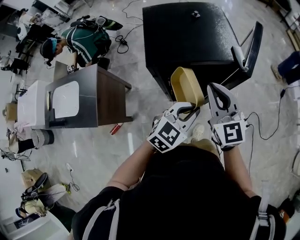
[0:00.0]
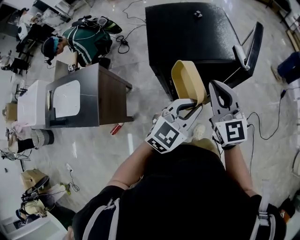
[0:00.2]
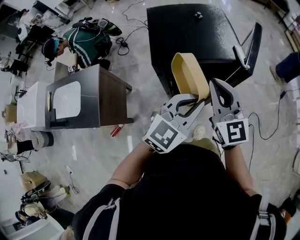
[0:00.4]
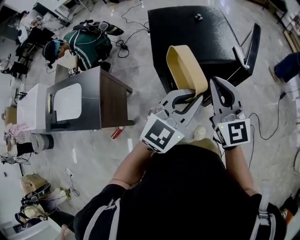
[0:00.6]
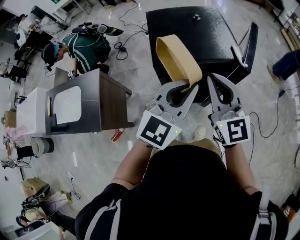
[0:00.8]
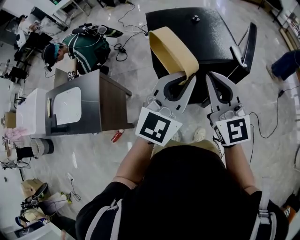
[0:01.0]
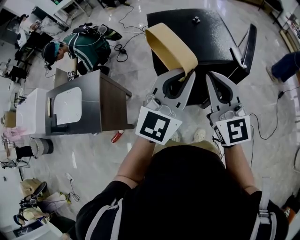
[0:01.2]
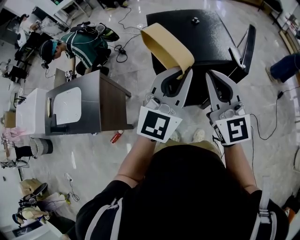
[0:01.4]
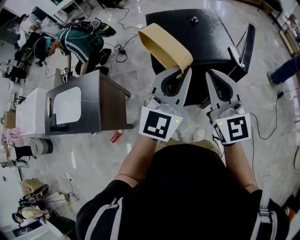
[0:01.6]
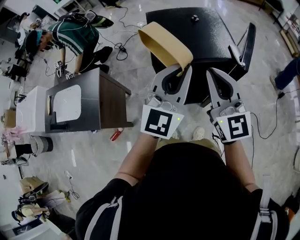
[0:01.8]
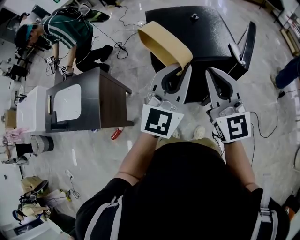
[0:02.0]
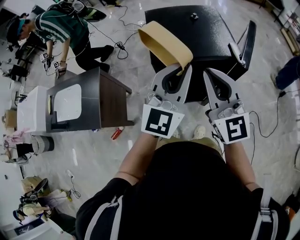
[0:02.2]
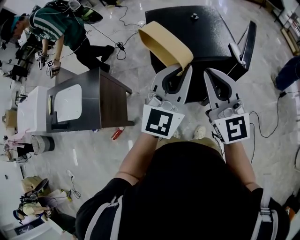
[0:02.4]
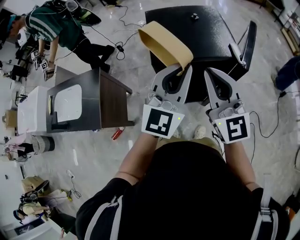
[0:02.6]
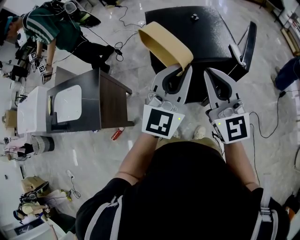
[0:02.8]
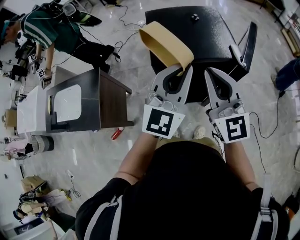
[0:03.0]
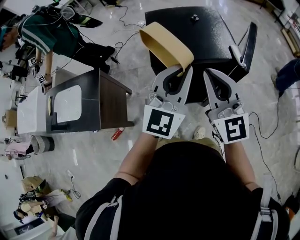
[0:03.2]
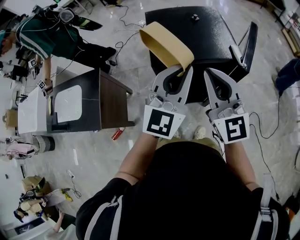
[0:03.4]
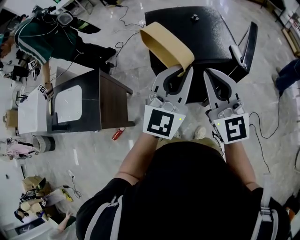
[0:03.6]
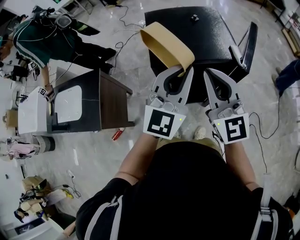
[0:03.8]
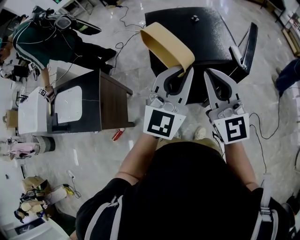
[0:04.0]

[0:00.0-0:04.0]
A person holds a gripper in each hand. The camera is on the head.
0:00.0 to 0:01.4: The left gripper shifts roughly 20 cm upward and to the left, and points its fingers some 40 degrees further upward, while the right gripper shifts approximately 10 cm upward.
0:01.4 to 0:04.0: The grippers move only a little.

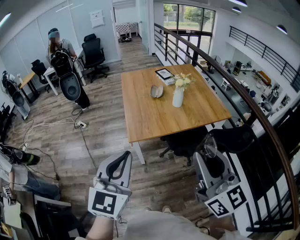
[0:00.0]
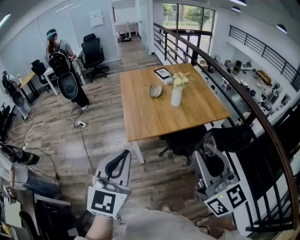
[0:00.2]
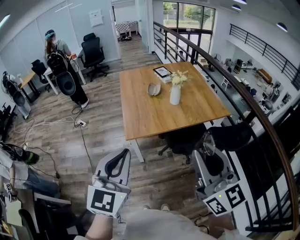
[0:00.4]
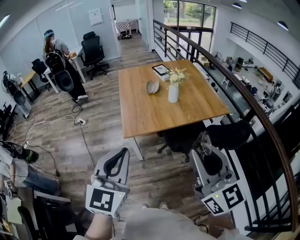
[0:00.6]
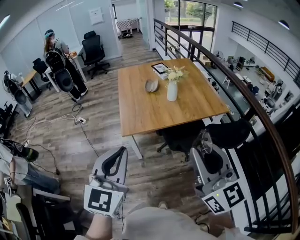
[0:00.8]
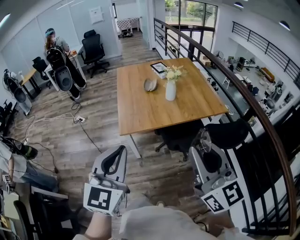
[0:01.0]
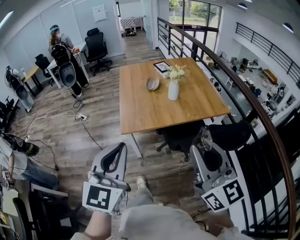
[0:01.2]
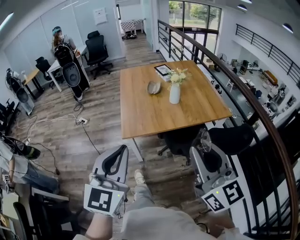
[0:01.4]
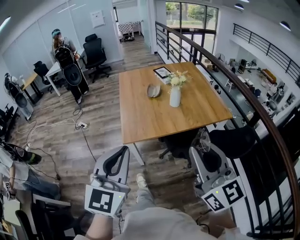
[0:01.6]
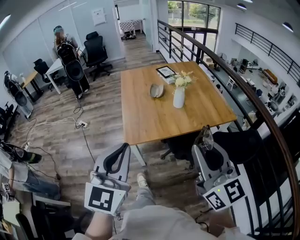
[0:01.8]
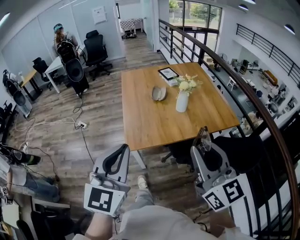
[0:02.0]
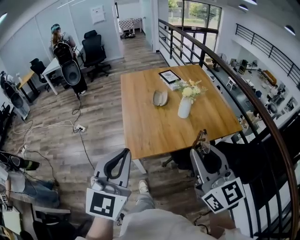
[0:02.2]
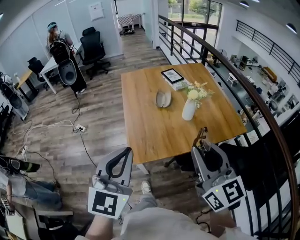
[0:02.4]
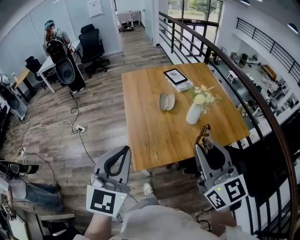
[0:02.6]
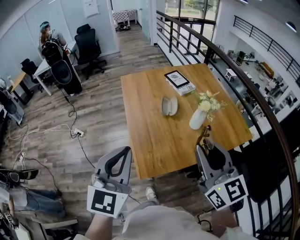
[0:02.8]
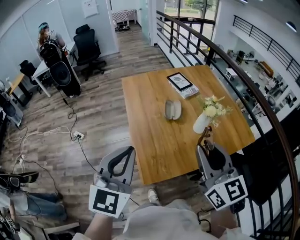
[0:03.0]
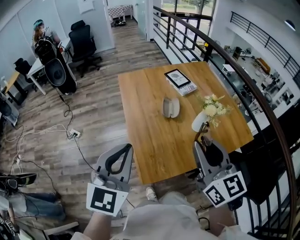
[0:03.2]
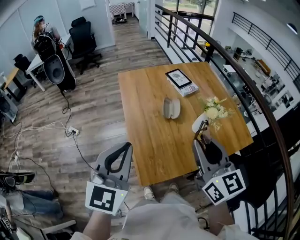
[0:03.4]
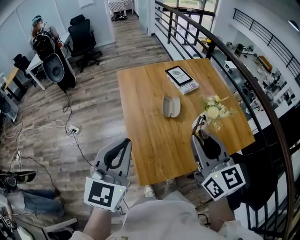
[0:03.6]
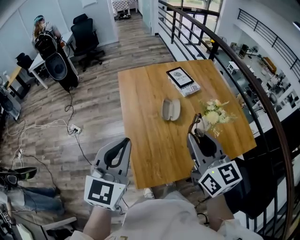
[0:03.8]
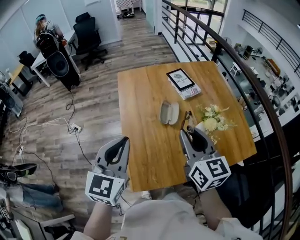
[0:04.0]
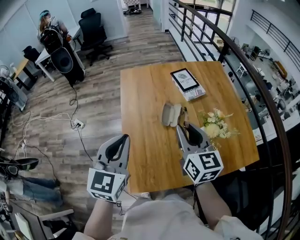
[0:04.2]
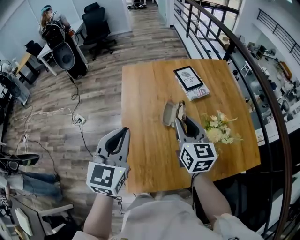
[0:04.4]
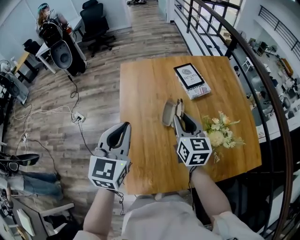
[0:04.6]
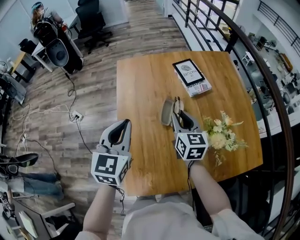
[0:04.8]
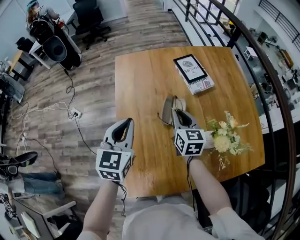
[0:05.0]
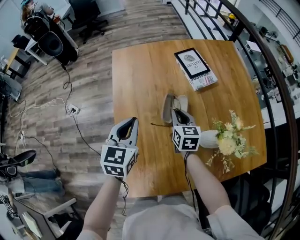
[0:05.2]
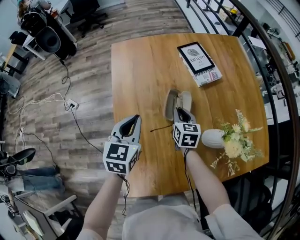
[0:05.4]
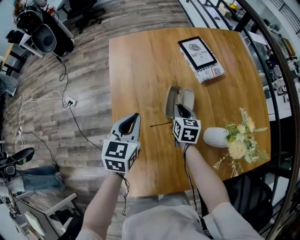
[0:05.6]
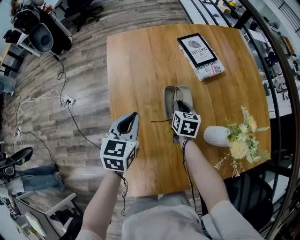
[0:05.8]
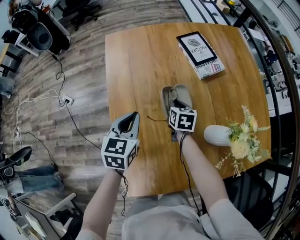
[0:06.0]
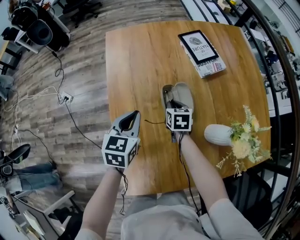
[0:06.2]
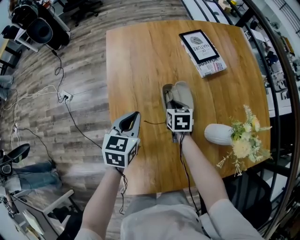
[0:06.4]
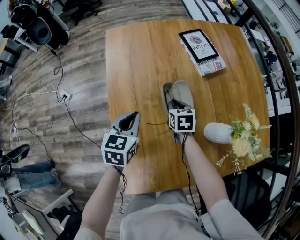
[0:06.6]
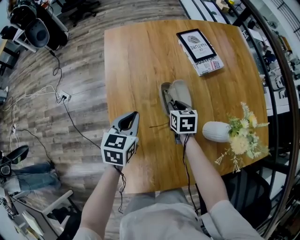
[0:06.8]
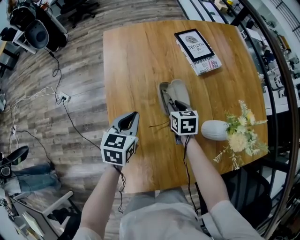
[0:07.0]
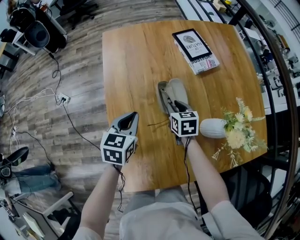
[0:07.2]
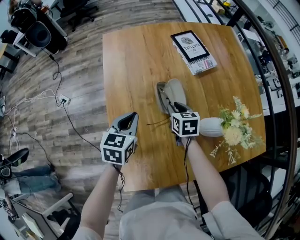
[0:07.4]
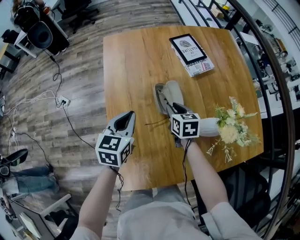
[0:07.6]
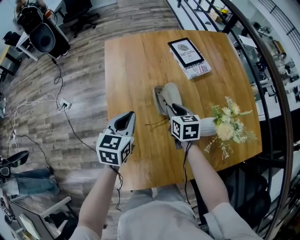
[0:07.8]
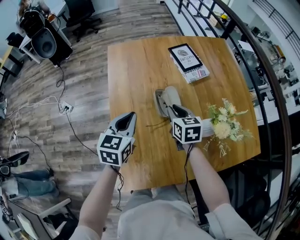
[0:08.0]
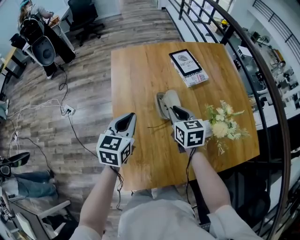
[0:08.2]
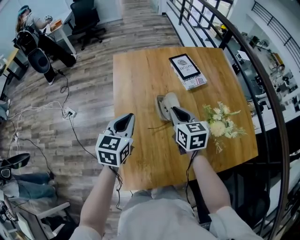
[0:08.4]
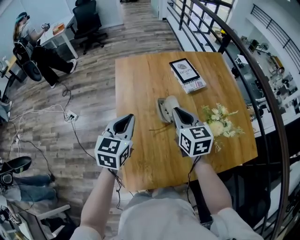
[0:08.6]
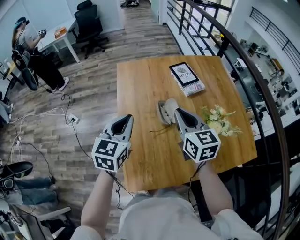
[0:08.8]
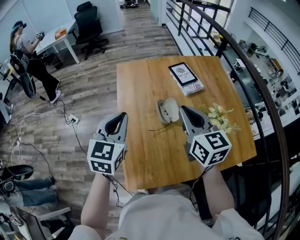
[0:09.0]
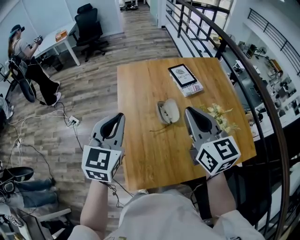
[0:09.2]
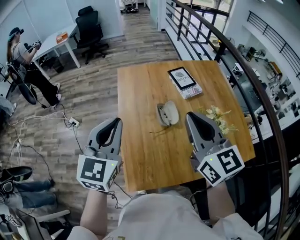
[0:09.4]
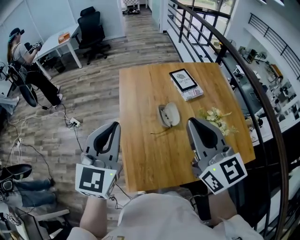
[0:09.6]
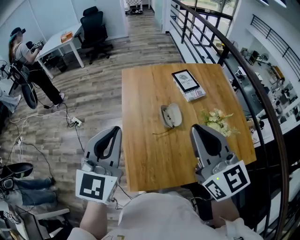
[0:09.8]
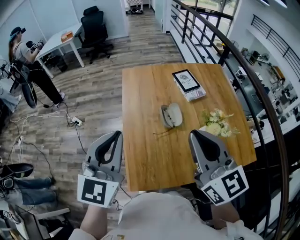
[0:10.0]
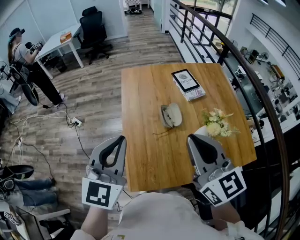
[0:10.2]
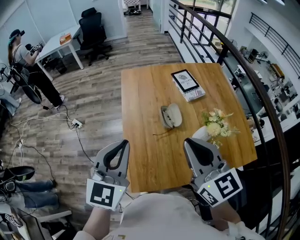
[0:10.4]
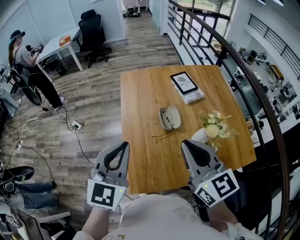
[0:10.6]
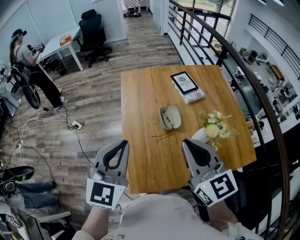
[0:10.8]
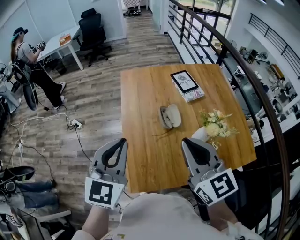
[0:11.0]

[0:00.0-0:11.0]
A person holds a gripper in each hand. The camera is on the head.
0:00.0 to 0:01.6: Both grippers travel together to the right, roughly 5 cm.
0:01.6 to 0:03.2: The two grippers travel together, forward, some 40 cm.
0:03.2 to 0:04.8: Both grippers move forward and downward, approximately 35 cm.
0:04.8 to 0:06.2: The two grippers go approximately 25 cm downward. The left gripper rotates roughly 20 degrees. Meanwhile the right gripper angles its fingers downward, by roughly 30 degrees.
0:06.2 to 0:07.8: The right gripper shifts roughly 10 cm upward and backward; the left gripper heads upward, covering roughly 5 cm.
0:07.8 to 0:09.4: Both grippers travel together upward and backward, about 35 cm. The left gripper rotates approximately 30 degrees, while the right gripper points its fingers approximately 40 degrees further upward.
0:09.4 to 0:11.0: Both grippers move backward, about 5 cm.

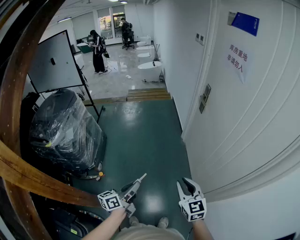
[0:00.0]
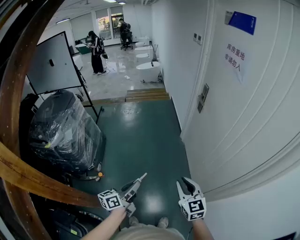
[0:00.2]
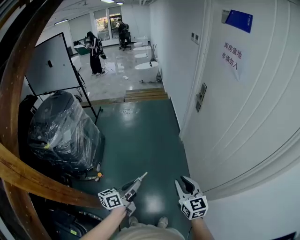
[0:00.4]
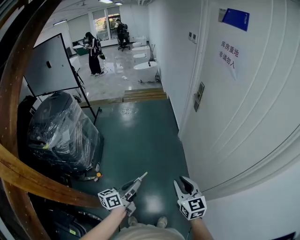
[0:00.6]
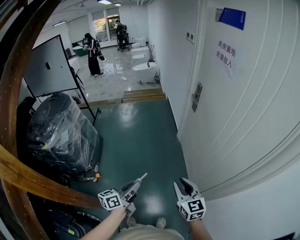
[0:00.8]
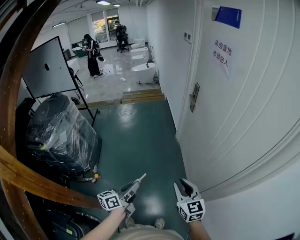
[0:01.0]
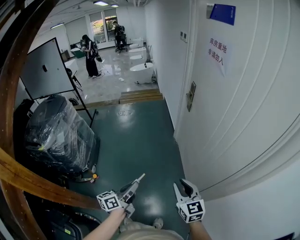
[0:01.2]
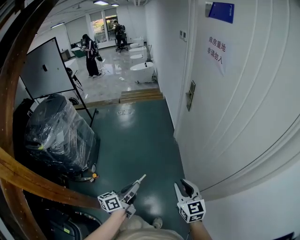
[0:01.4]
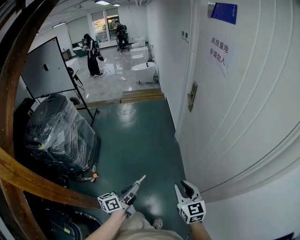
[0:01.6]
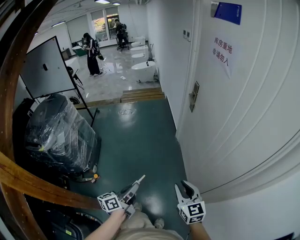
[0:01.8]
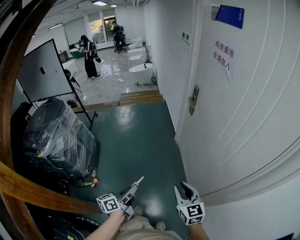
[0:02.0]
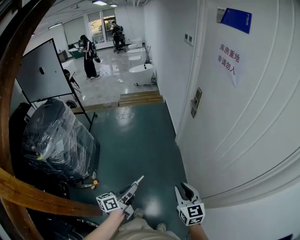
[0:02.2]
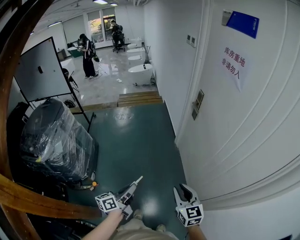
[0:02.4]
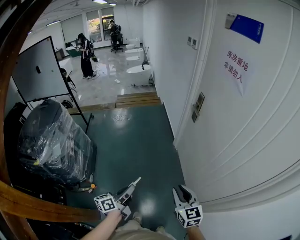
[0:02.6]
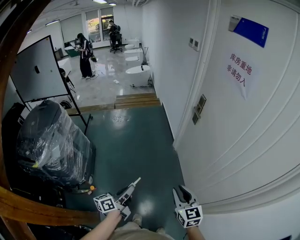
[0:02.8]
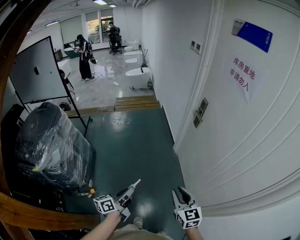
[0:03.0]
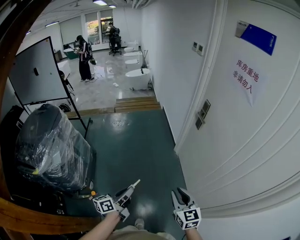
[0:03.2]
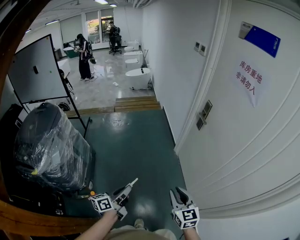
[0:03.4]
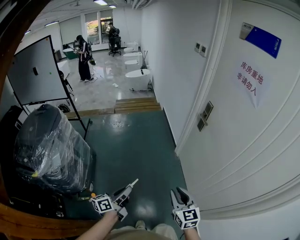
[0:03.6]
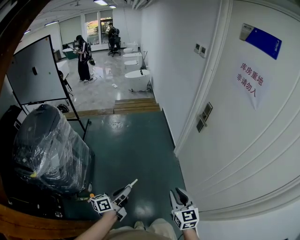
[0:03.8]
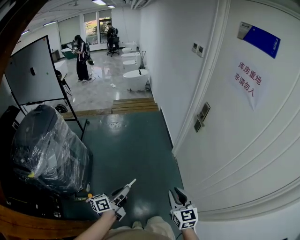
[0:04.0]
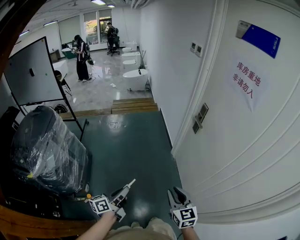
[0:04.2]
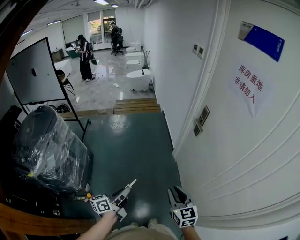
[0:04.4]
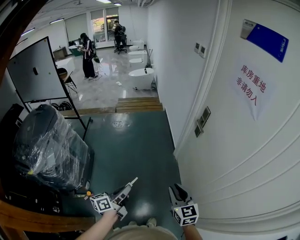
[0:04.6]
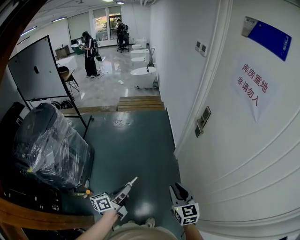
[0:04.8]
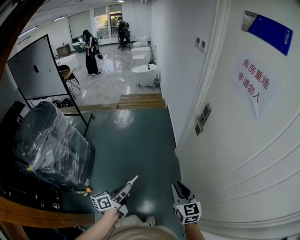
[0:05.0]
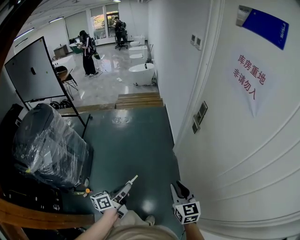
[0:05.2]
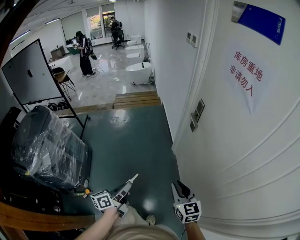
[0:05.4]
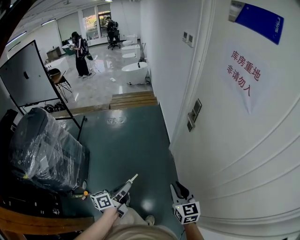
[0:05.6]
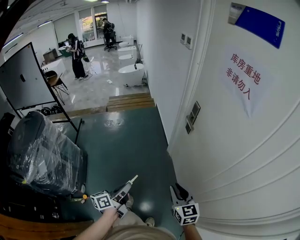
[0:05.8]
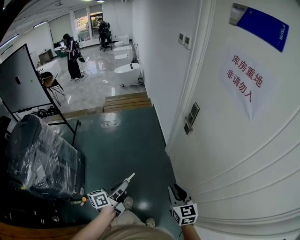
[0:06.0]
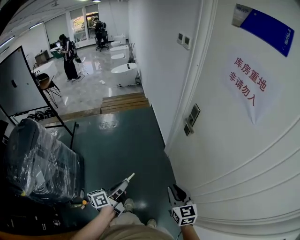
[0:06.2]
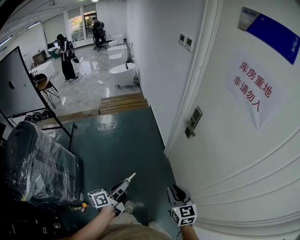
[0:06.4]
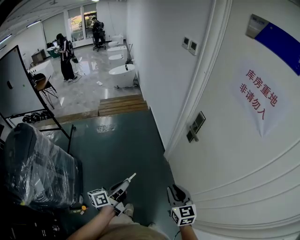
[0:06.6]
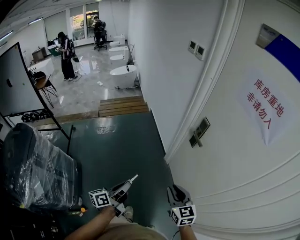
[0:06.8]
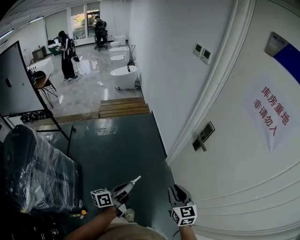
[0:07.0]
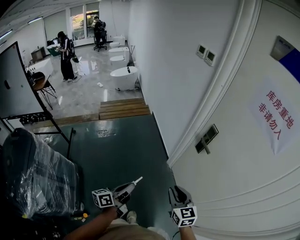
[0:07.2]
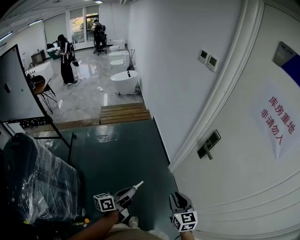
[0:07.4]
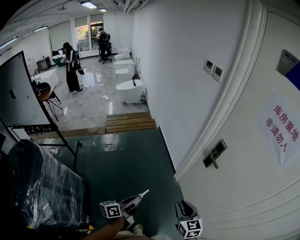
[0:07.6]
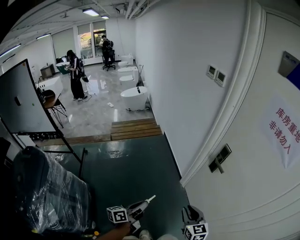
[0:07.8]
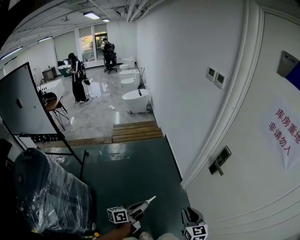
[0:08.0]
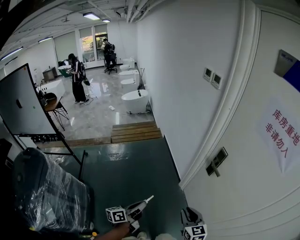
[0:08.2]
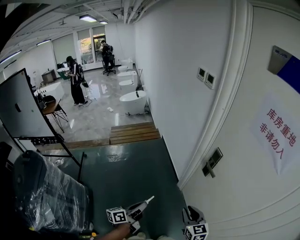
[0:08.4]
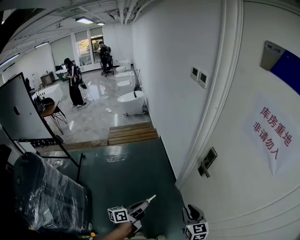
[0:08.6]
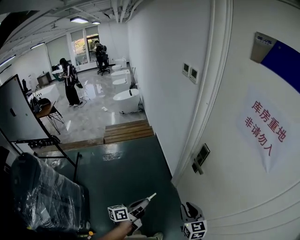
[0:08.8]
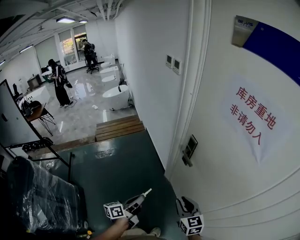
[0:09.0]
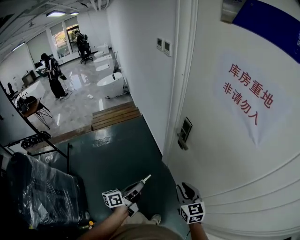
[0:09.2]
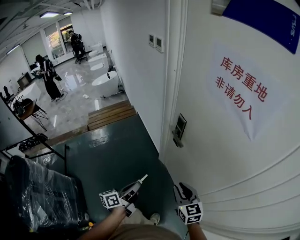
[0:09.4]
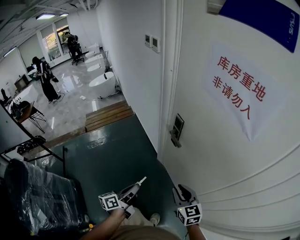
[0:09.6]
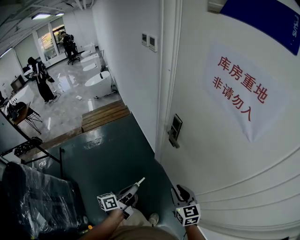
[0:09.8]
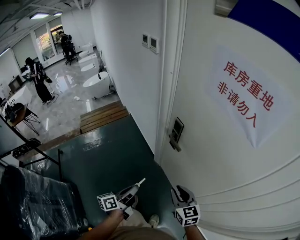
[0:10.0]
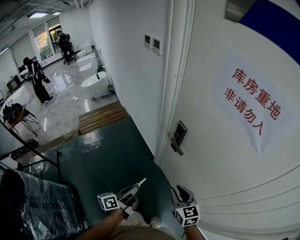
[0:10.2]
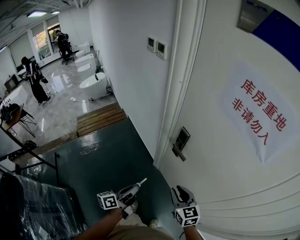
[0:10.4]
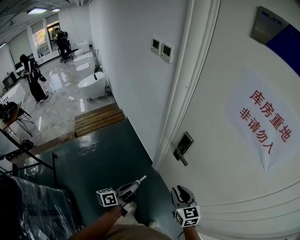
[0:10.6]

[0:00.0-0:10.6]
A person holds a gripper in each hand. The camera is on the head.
0:00.0 to 0:01.6: The two grippers go roughly 10 cm to the right.
0:01.6 to 0:03.0: The grippers both shift to the left and forward by about 20 cm.
0:03.0 to 0:04.6: The grippers both shift forward by roughly 10 cm.
0:04.6 to 0:06.0: The left gripper goes about 10 cm forward, while the right gripper moves forward and to the right, approximately 10 cm.
0:06.0 to 0:07.6: The grippers both shift to the left and forward by roughly 20 cm.
0:07.6 to 0:09.0: Both grippers travel together to the right, about 15 cm.
0:09.0 to 0:10.6: Both grippers travel together forward, approximately 10 cm.
